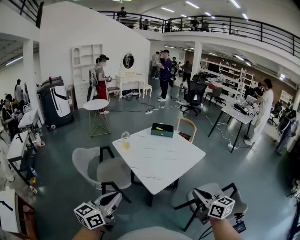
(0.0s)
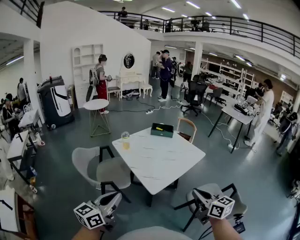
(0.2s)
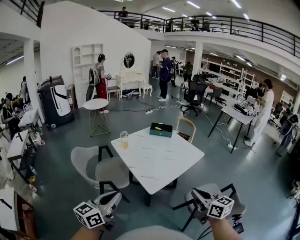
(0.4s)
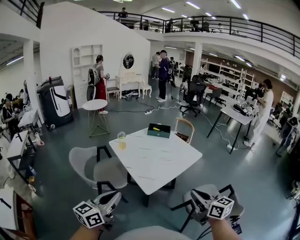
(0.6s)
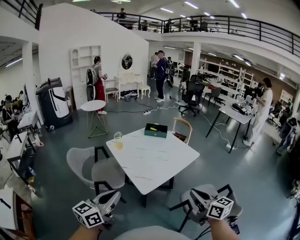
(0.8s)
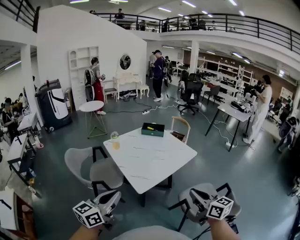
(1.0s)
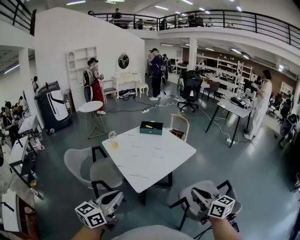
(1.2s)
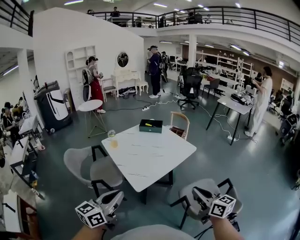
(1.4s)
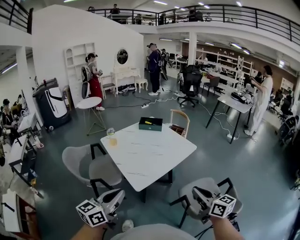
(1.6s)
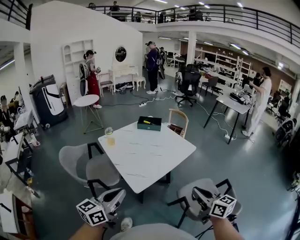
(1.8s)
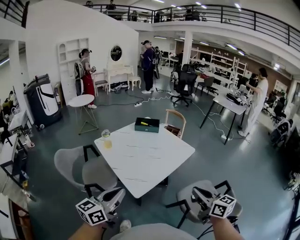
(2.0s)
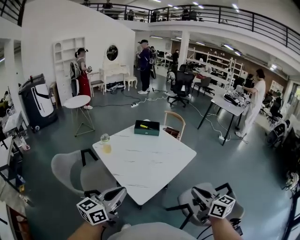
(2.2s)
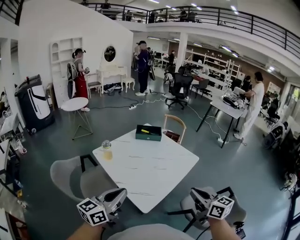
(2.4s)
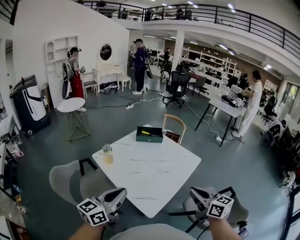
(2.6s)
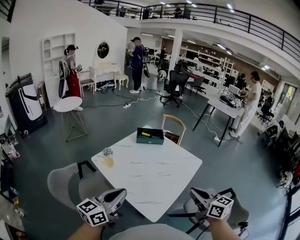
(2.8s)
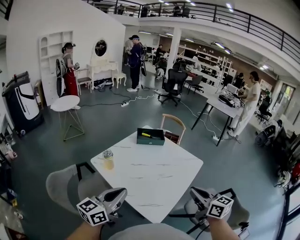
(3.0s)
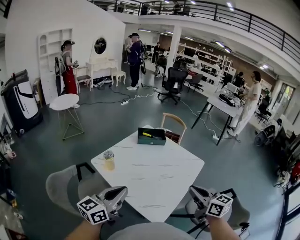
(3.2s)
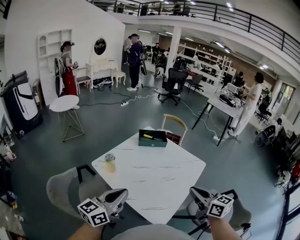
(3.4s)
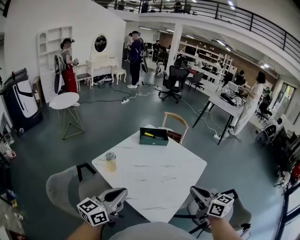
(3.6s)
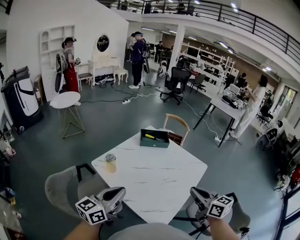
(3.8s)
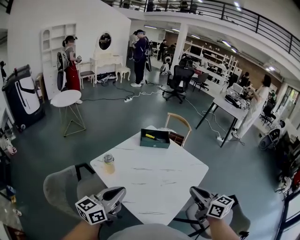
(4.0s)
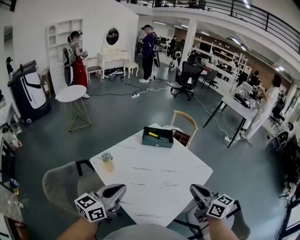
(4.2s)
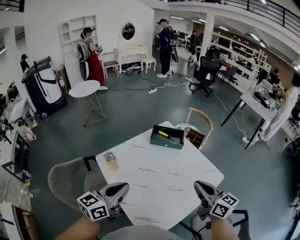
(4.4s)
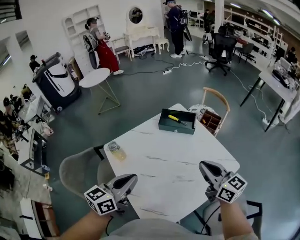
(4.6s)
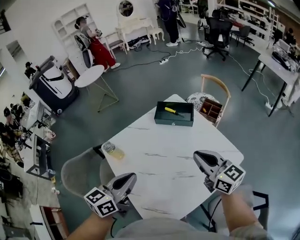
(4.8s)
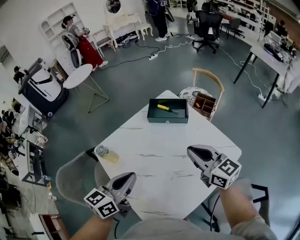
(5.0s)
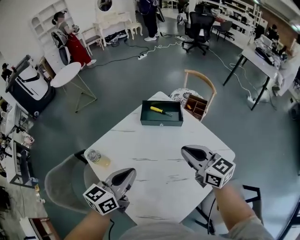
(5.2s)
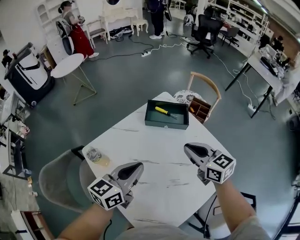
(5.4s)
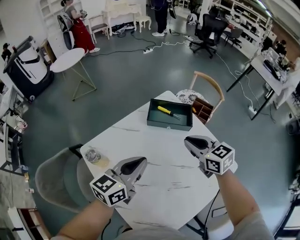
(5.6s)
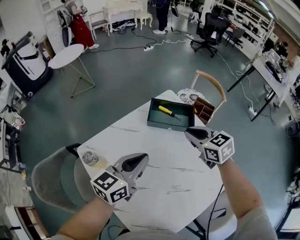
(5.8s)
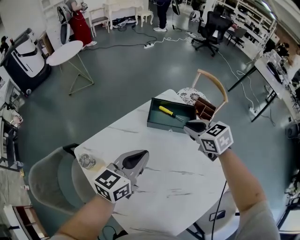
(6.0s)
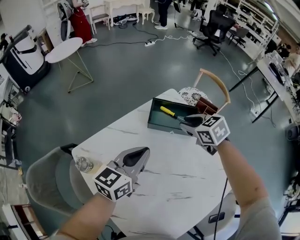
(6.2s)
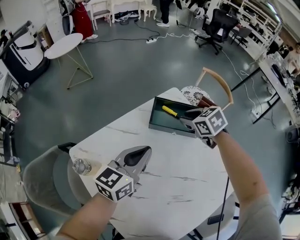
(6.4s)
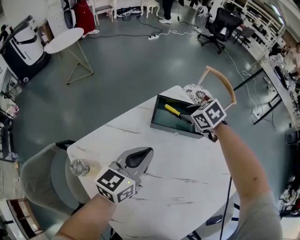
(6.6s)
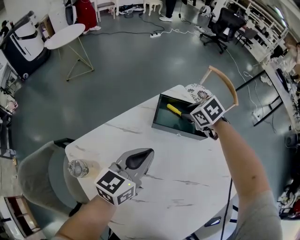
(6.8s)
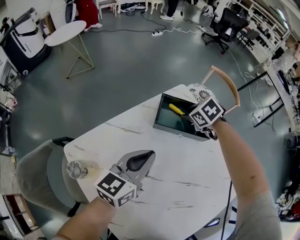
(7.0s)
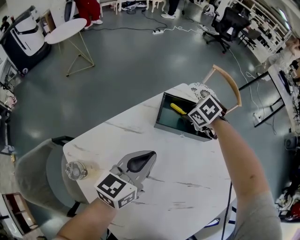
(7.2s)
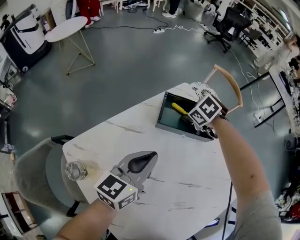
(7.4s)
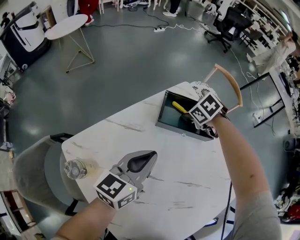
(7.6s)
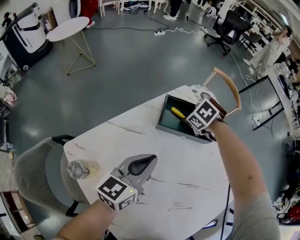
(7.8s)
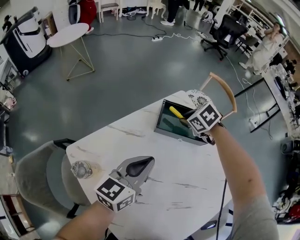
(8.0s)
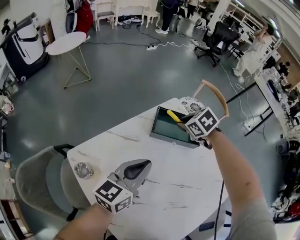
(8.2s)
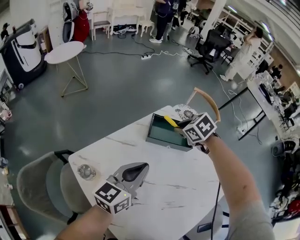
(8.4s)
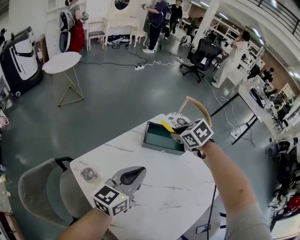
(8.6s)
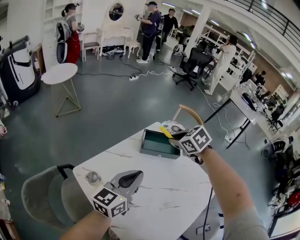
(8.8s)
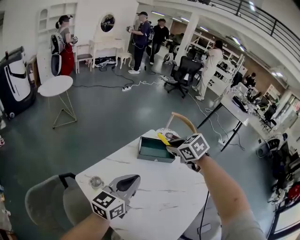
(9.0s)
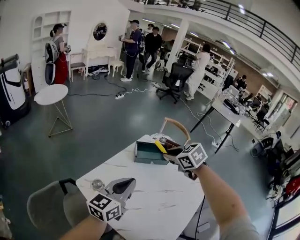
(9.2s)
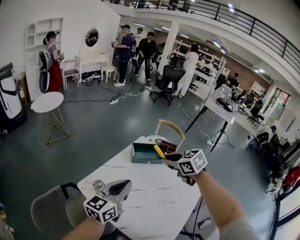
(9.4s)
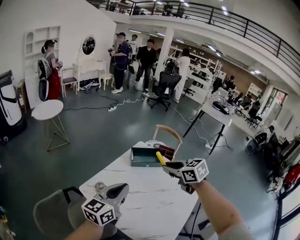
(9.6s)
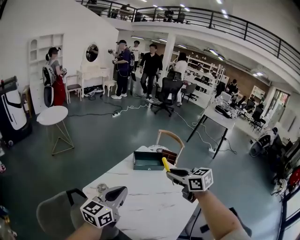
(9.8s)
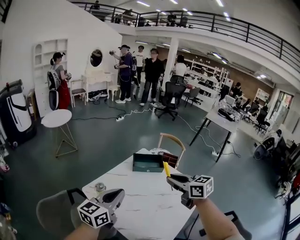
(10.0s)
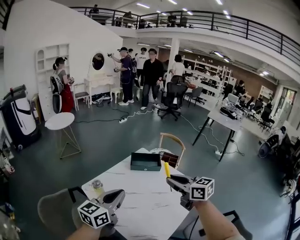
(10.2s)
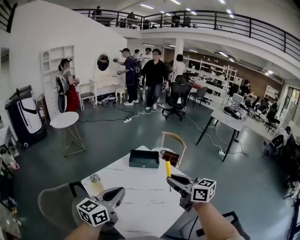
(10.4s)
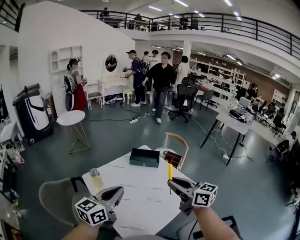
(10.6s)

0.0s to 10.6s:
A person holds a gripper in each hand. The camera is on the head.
0.0s to 1.6s: The grippers both shift to the right by roughly 15 cm.
1.6s to 3.0s: Both grippers move forward and to the left, some 30 cm.
3.0s to 4.6s: The left gripper moves forward, roughly 15 cm, and rotates roughly 20 degrees. Meanwhile the right gripper shifts about 25 cm forward.
4.6s to 6.0s: Both grippers travel together forward and downward, some 25 cm. The right gripper tilts its fingers some 40 degrees downward.
6.0s to 7.6s: The right gripper moves downward and forward, approximately 20 cm, angles its fingers downward, by approximately 30 degrees, and opens. The left gripper travels downward by about 5 cm.
7.6s to 9.0s: The left gripper travels upward by some 15 cm, while the right gripper goes about 25 cm upward, and swivels some 20 degrees.
9.0s to 10.6s: The left gripper goes some 20 cm backward and upward. Meanwhile the right gripper travels backward and to the right by about 35 cm, and angles its fingers upward, by about 50 degrees.

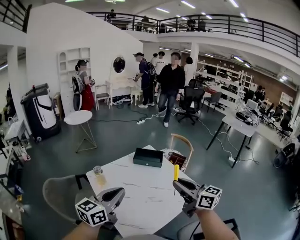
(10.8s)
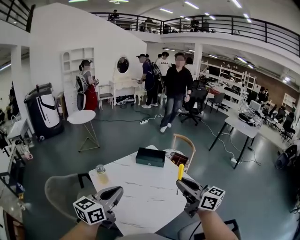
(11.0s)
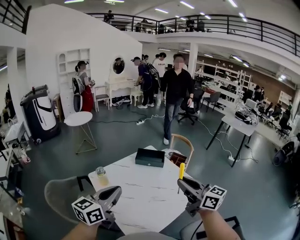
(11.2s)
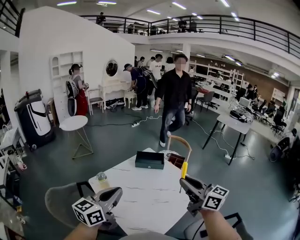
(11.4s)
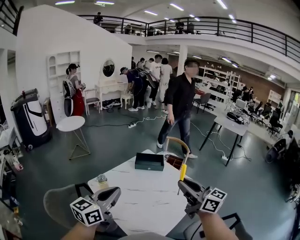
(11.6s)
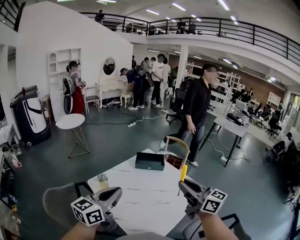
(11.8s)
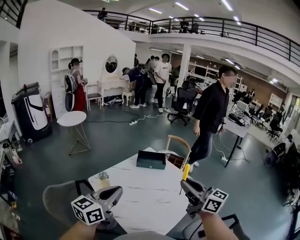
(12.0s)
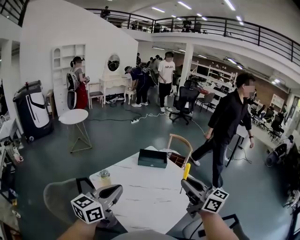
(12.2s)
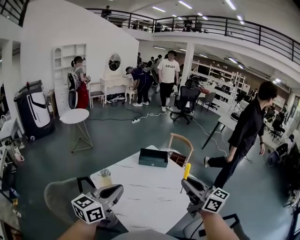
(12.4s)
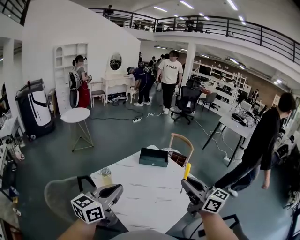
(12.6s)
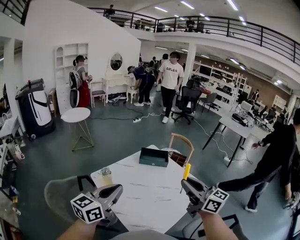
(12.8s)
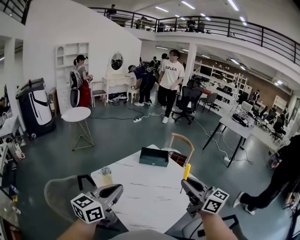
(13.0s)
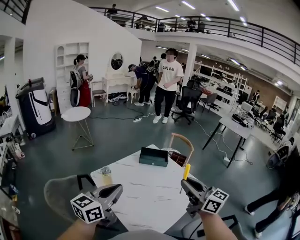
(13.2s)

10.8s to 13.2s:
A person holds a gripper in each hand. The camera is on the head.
10.8s to 12.0s: The right gripper travels to the left by about 5 cm; the left gripper is displaced to the left by some 10 cm.
12.0s to 13.2s: There are only small adjustments of the grippers.

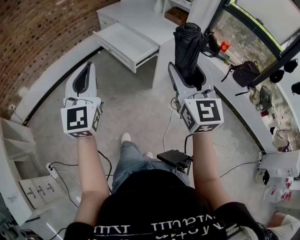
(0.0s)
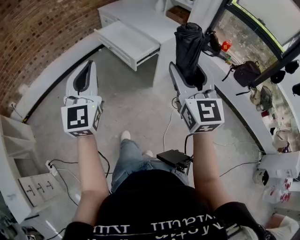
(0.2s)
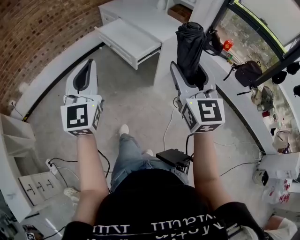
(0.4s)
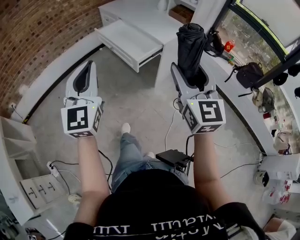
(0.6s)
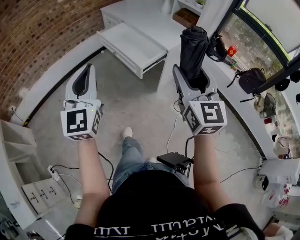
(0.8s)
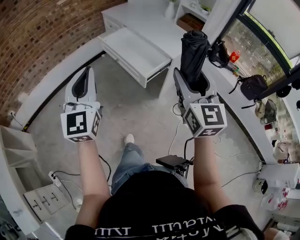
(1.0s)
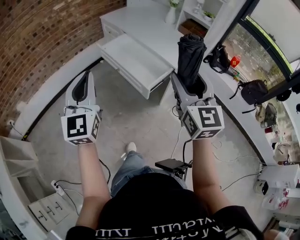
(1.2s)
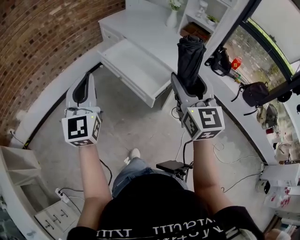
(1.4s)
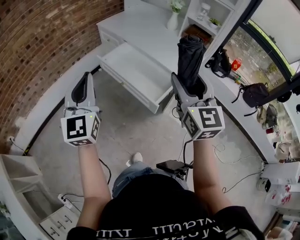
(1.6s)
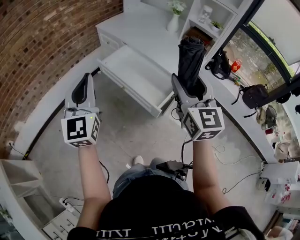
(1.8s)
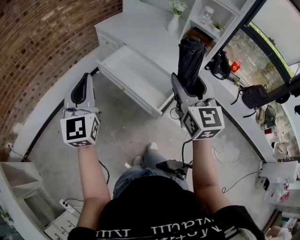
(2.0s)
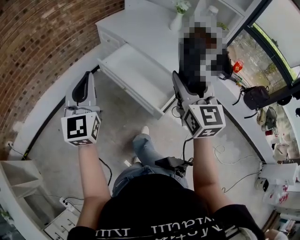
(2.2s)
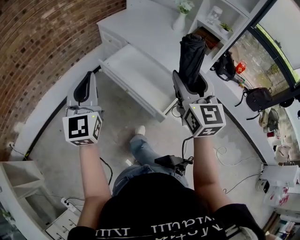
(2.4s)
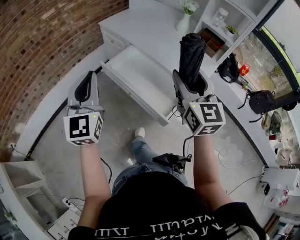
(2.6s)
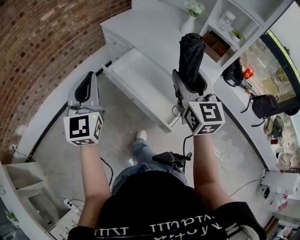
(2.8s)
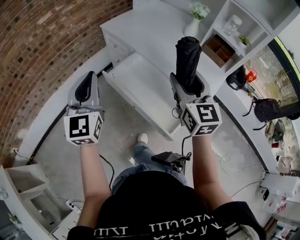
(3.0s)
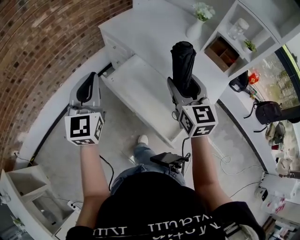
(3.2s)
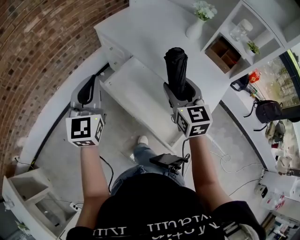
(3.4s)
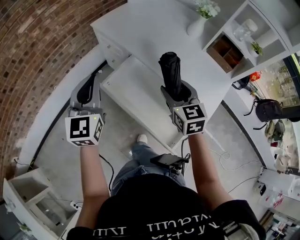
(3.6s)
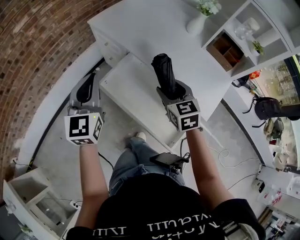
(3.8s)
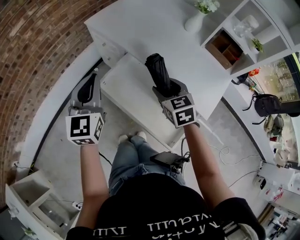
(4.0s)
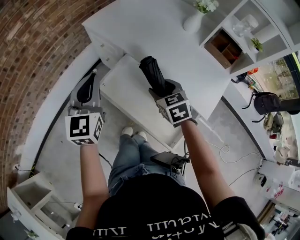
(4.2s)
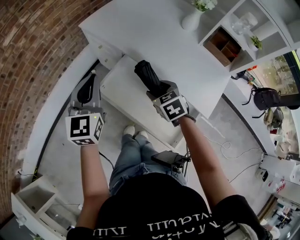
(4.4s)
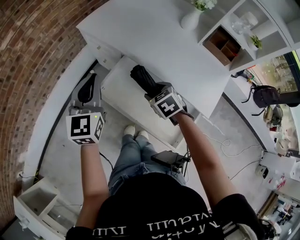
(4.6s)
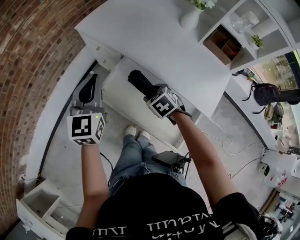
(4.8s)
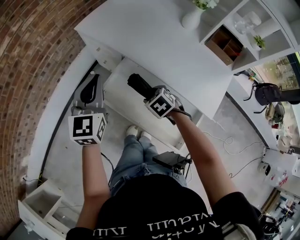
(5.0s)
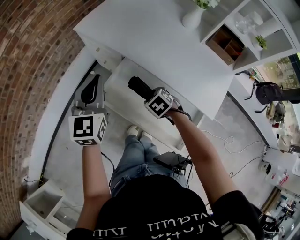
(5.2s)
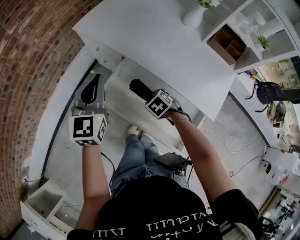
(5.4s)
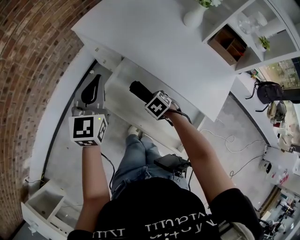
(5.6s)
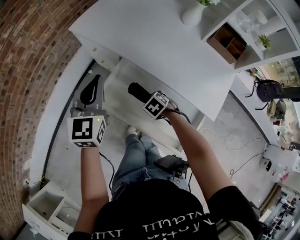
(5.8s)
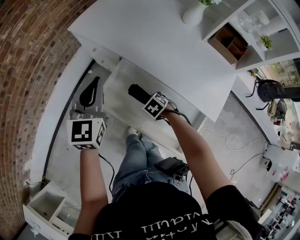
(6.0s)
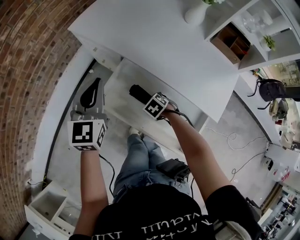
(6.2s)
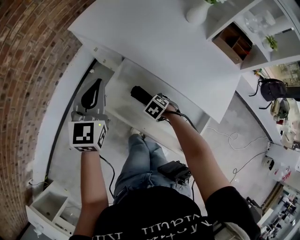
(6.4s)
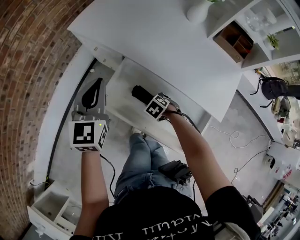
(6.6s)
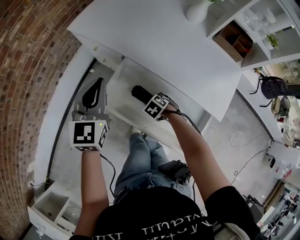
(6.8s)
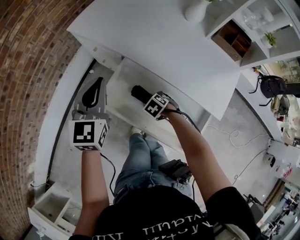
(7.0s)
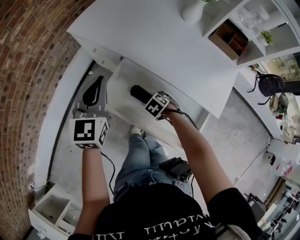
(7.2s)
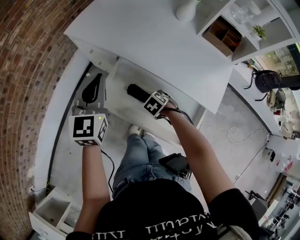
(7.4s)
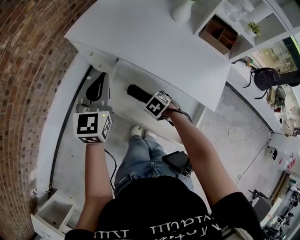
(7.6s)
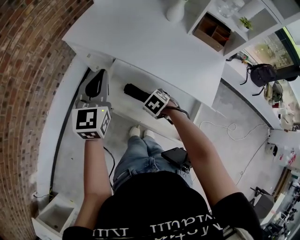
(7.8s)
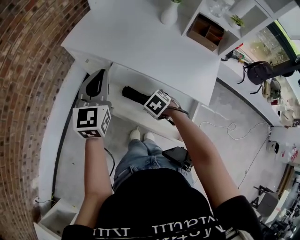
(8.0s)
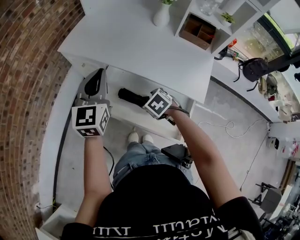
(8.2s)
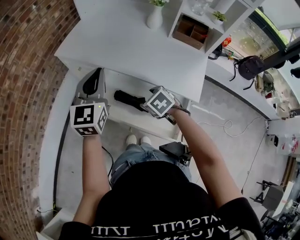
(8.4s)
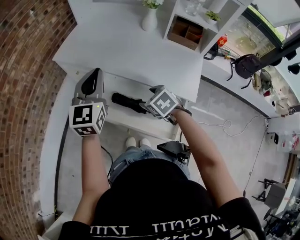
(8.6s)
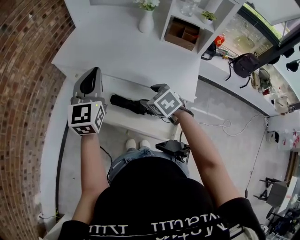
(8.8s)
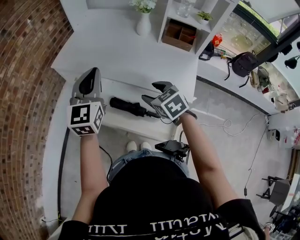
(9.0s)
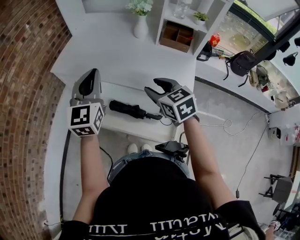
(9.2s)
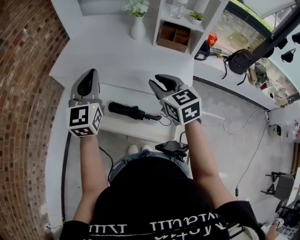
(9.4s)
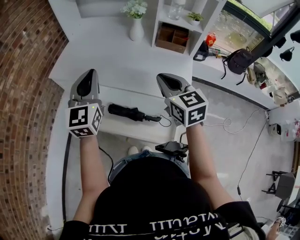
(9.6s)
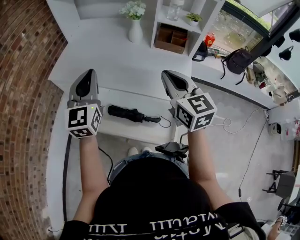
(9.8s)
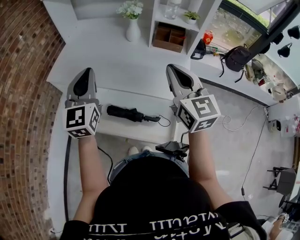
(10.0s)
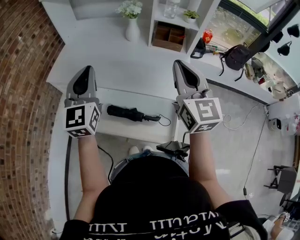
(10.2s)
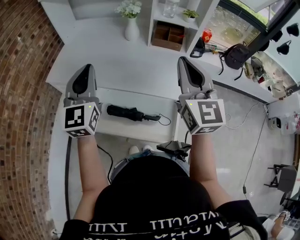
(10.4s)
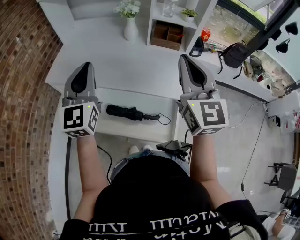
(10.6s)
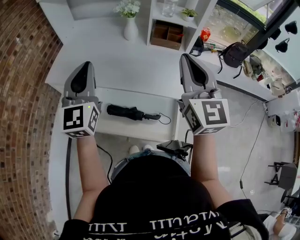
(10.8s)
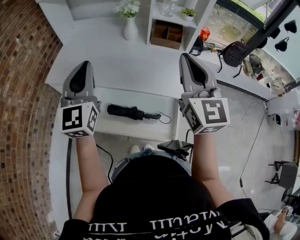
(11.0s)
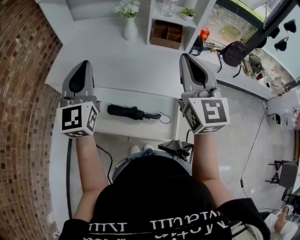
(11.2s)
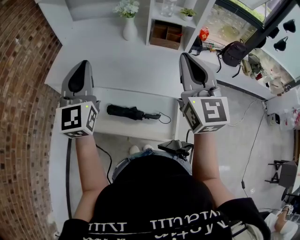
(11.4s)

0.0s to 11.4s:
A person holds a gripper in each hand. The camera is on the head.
0.0s to 1.4s: The right gripper shifts about 30 cm forward, while the left gripper travels forward and to the left by about 30 cm.
1.4s to 2.8s: The two grippers go some 25 cm forward.
2.8s to 4.2s: The right gripper is displaced downward and forward by about 30 cm, and tilts its fingers about 40 degrees downward; the left gripper moves forward, about 20 cm.
4.2s to 5.6s: The left gripper travels forward by about 5 cm, while the right gripper travels downward by about 15 cm, and turns by some 30 degrees.
5.6s to 7.2s: The right gripper heads downward, covering approximately 5 cm.
7.2s to 8.6s: The right gripper heads upward, covering roughly 20 cm, and swivels roughly 30 degrees. The left gripper moves some 10 cm.
8.6s to 10.0s: The right gripper travels upward and to the right by some 30 cm, tips its fingers upward by approximately 60 degrees, and closes its fingers; the left gripper shifts roughly 5 cm upward.
10.0s to 11.4s: The right gripper is displaced upward by some 5 cm.
